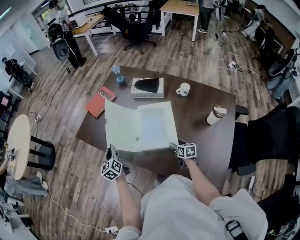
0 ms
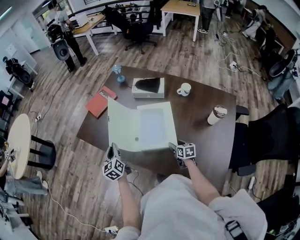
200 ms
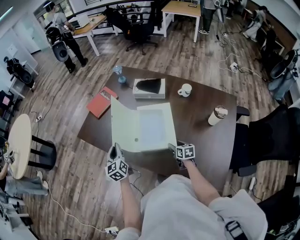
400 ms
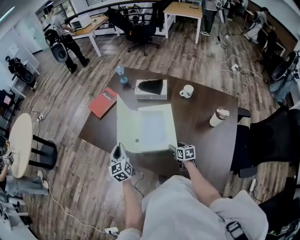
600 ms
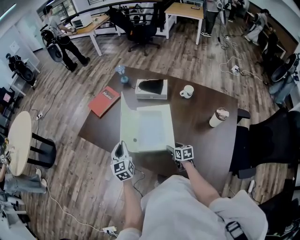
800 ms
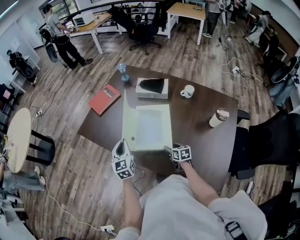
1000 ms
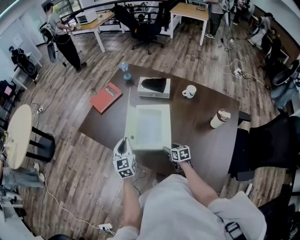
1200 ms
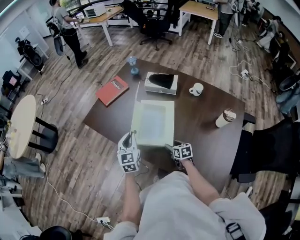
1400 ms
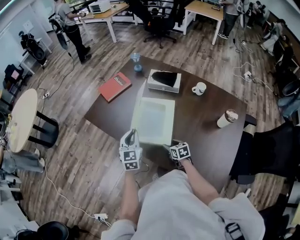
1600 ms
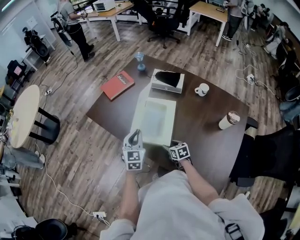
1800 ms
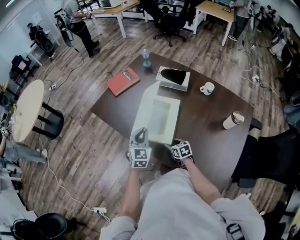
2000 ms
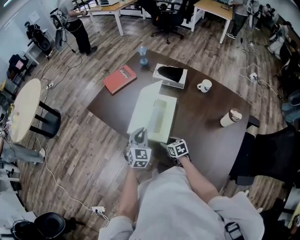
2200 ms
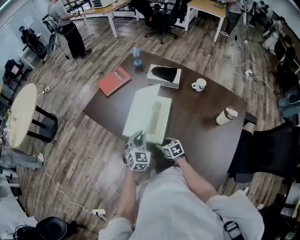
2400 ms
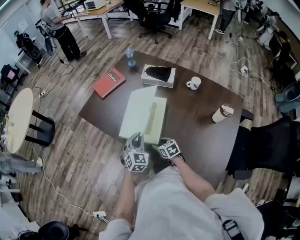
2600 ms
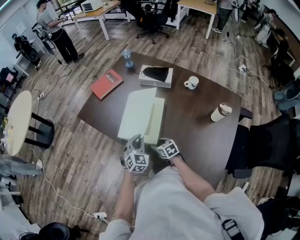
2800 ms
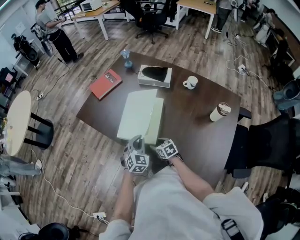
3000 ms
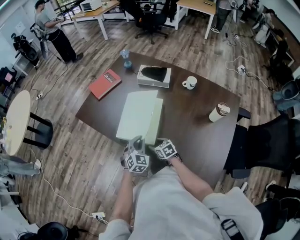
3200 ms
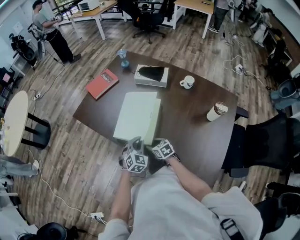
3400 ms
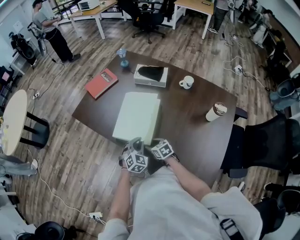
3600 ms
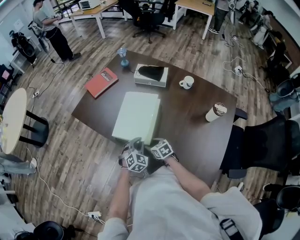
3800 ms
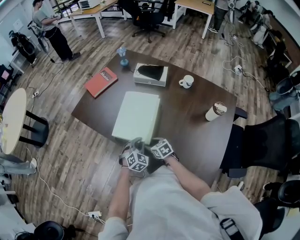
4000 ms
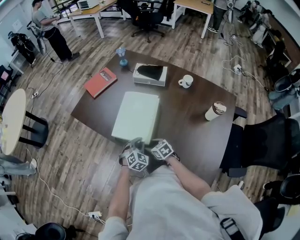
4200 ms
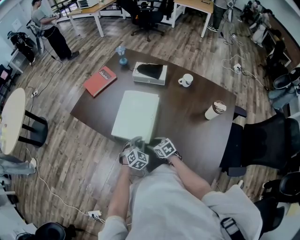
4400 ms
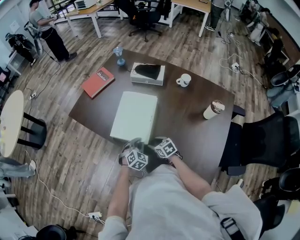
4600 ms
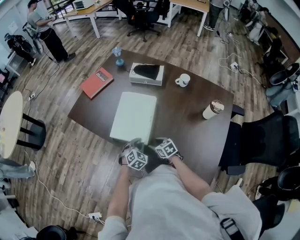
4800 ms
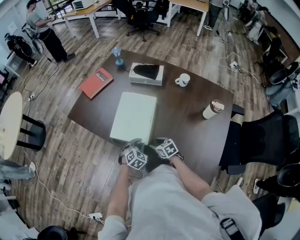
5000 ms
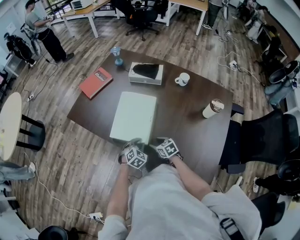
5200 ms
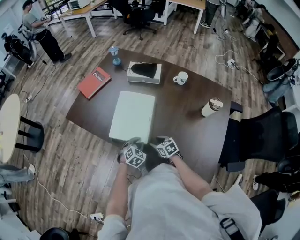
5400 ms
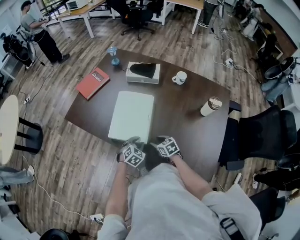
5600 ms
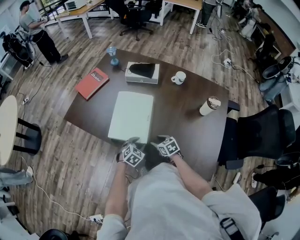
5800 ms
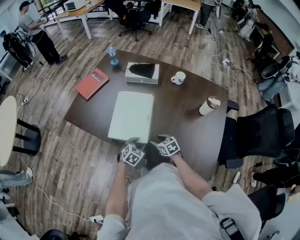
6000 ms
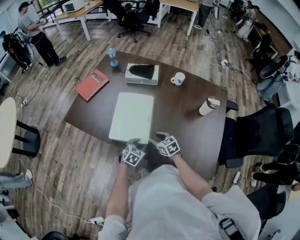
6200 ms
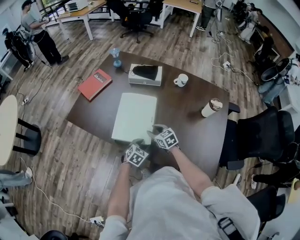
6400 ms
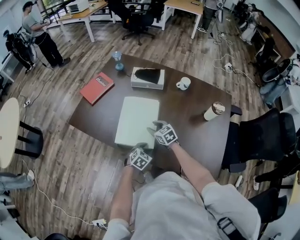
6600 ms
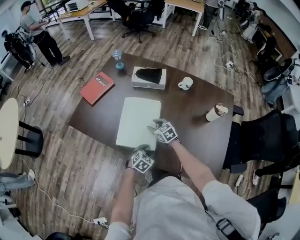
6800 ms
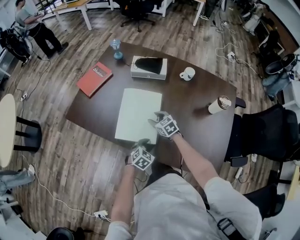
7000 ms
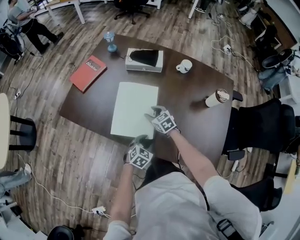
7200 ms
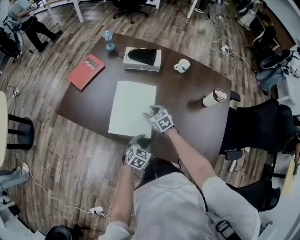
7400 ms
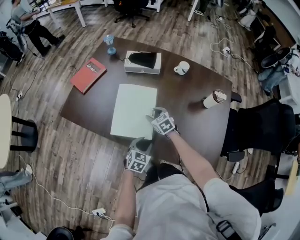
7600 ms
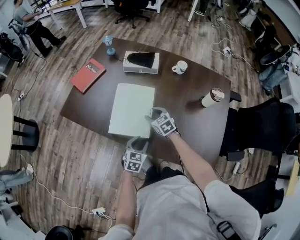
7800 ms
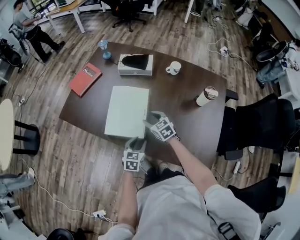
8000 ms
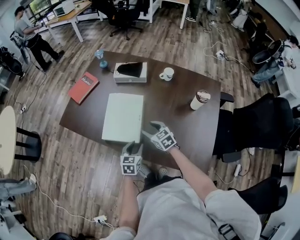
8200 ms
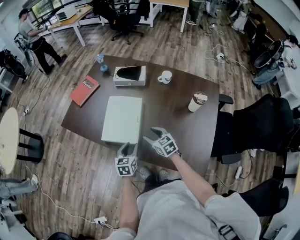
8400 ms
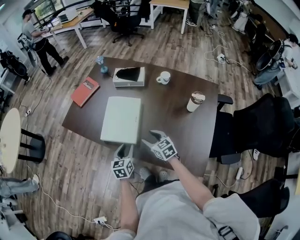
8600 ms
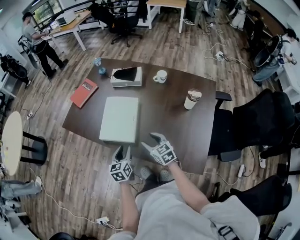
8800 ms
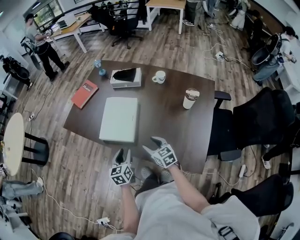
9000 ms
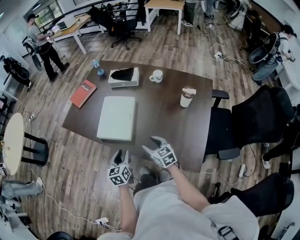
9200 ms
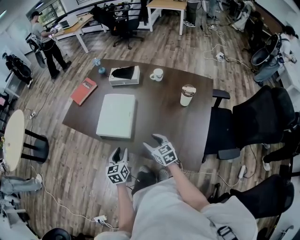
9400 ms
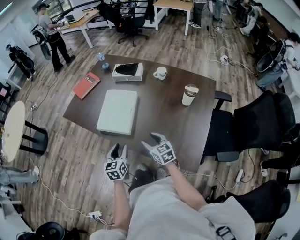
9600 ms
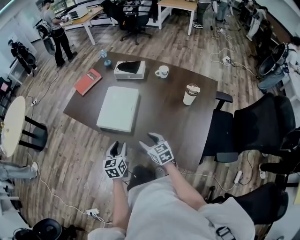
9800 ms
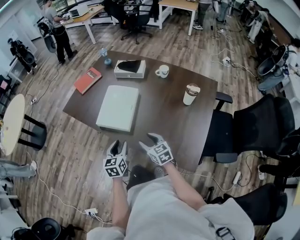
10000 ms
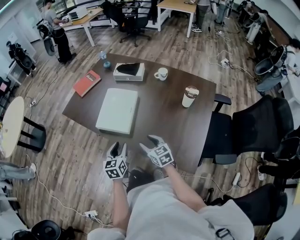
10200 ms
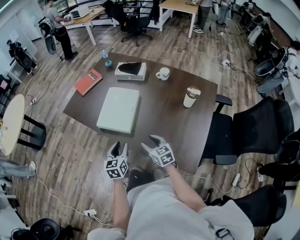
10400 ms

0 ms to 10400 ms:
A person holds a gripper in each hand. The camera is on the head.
0 ms to 1400 ms: The left gripper heads to the right, covering approximately 10 cm, and rotates some 30 degrees; the right gripper moves to the left, approximately 10 cm.
1400 ms to 3000 ms: The right gripper heads to the left, covering roughly 5 cm; the left gripper goes approximately 15 cm downward, backward and to the right, and turns by approximately 30 degrees.
3000 ms to 4400 ms: The left gripper heads downward, covering about 5 cm.
4400 ms to 6000 ms: The left gripper swivels roughly 20 degrees, and opens.
6000 ms to 7400 ms: The right gripper is displaced forward by some 15 cm.
7400 ms to 9000 ms: The left gripper shifts about 15 cm upward and backward, and turns by some 50 degrees; the right gripper heads backward, upward and to the right, covering roughly 25 cm.
9000 ms to 10400 ms: The grippers stay close to where they were, moving slightly.

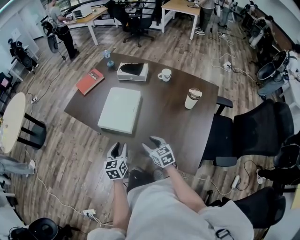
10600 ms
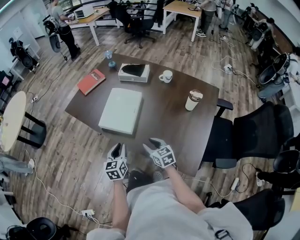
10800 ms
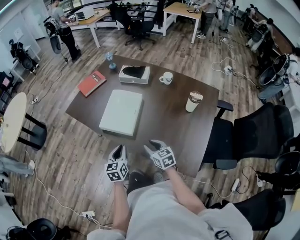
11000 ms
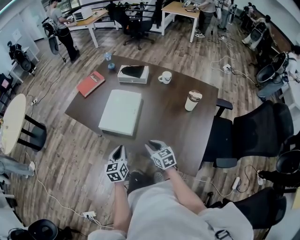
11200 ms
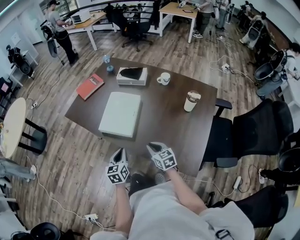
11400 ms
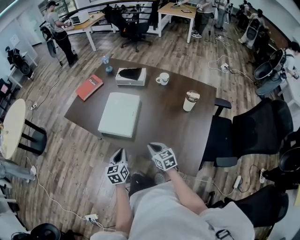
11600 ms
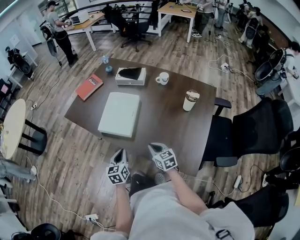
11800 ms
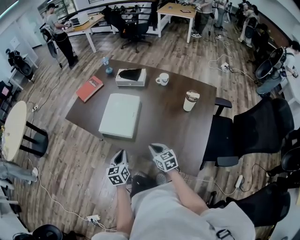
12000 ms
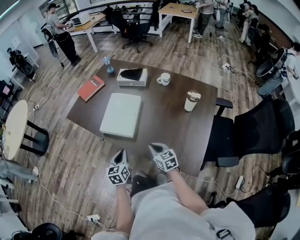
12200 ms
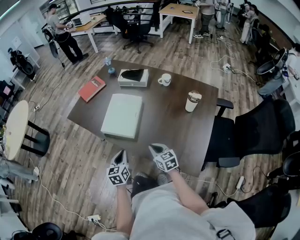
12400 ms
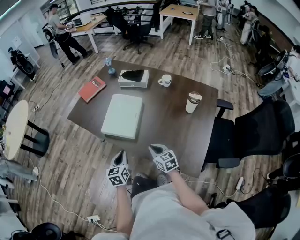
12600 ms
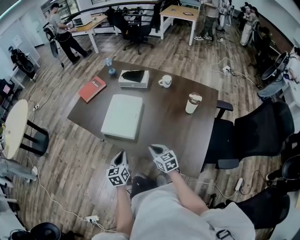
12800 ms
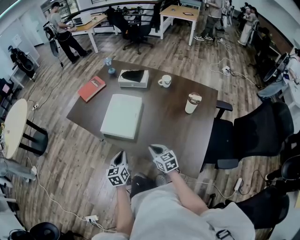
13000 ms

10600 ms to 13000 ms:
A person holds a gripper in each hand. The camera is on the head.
10600 ms to 11800 ms: The right gripper closes its fingers, while the left gripper closes its fingers.
11800 ms to 13000 ms: The grippers make only small movements.

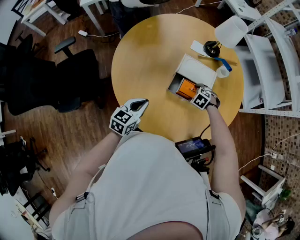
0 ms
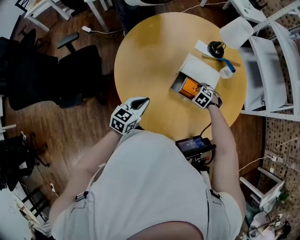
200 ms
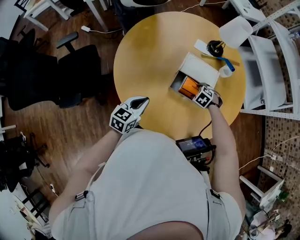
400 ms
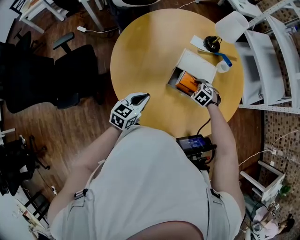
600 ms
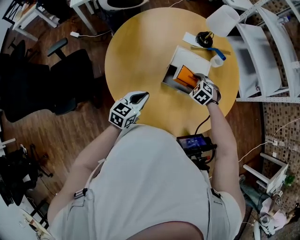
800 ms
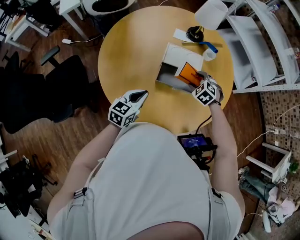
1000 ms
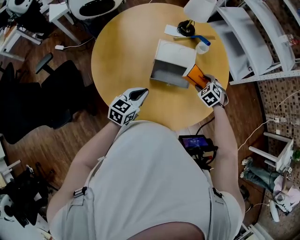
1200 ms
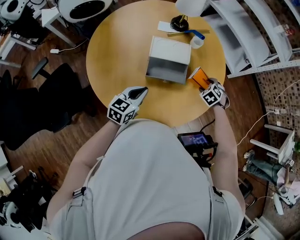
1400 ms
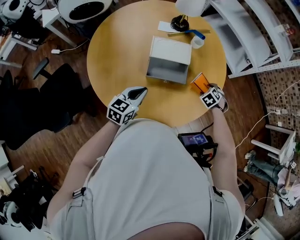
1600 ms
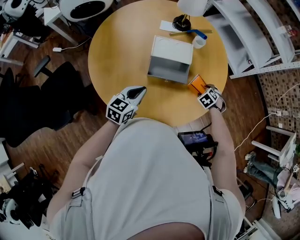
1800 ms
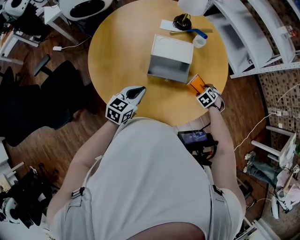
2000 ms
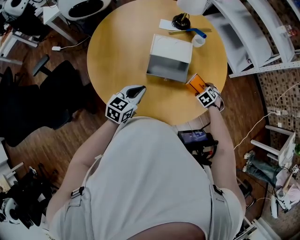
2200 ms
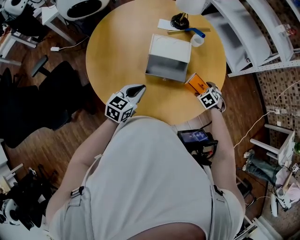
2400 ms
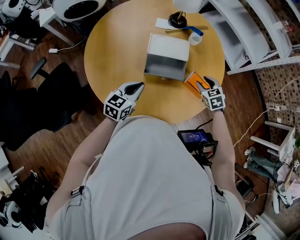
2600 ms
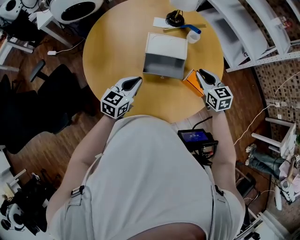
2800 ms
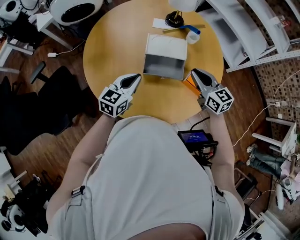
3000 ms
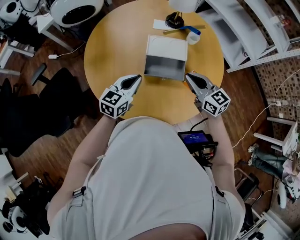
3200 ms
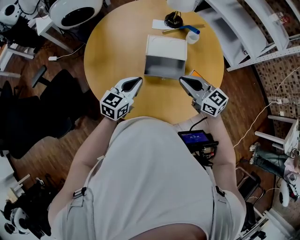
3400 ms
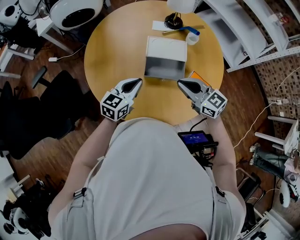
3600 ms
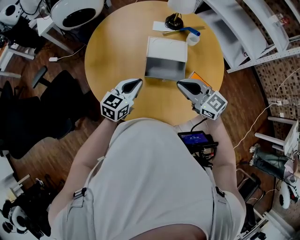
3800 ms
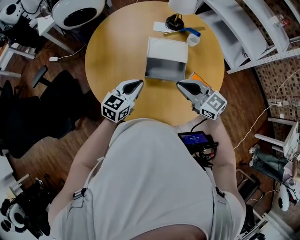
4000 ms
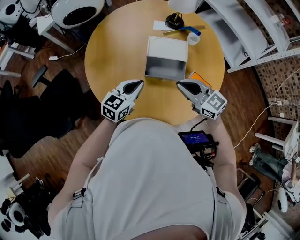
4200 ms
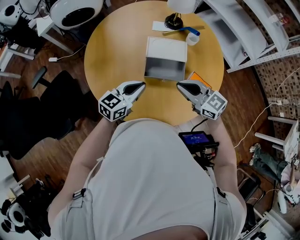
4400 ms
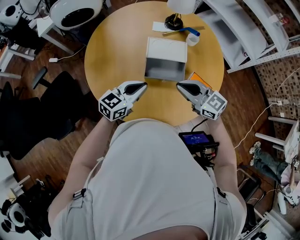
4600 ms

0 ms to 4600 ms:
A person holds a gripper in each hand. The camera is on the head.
0 ms to 1600 ms: The left gripper changes place by roughly 10 cm. Meanwhile the right gripper reaches roughly 10 cm upward, then returns, and turns by about 40 degrees.
1600 ms to 3000 ms: The left gripper ends up about 5 cm from where it was, while the right gripper goes roughly 20 cm upward, points its fingers approximately 60 degrees further upward, and closes.
3000 ms to 4600 ms: The right gripper heads to the left and backward, covering roughly 10 cm, and swivels roughly 20 degrees.

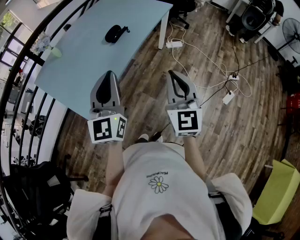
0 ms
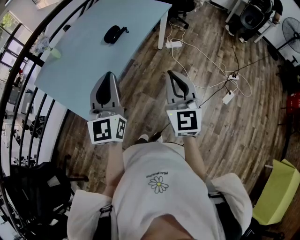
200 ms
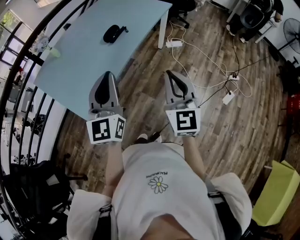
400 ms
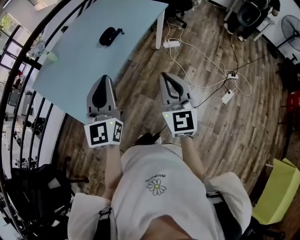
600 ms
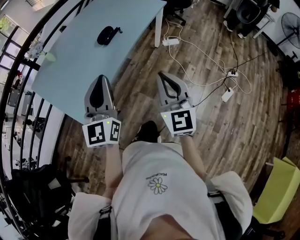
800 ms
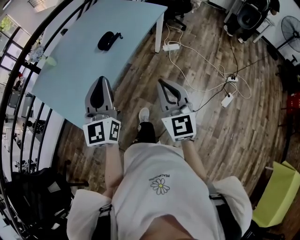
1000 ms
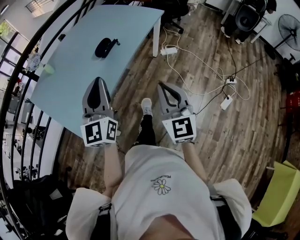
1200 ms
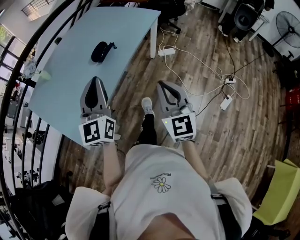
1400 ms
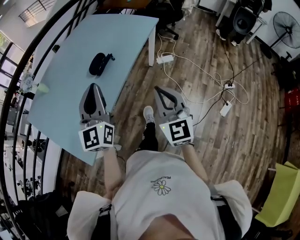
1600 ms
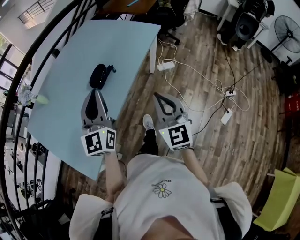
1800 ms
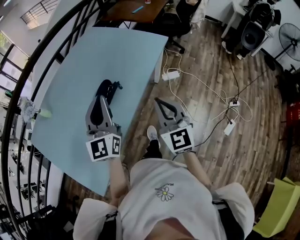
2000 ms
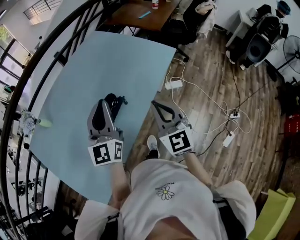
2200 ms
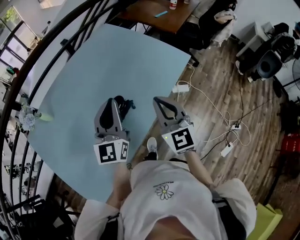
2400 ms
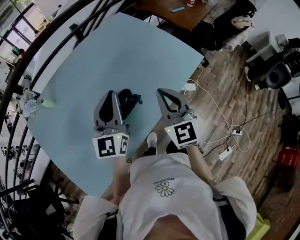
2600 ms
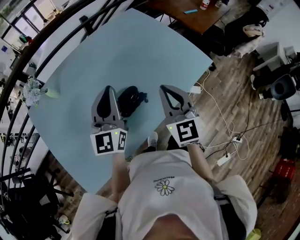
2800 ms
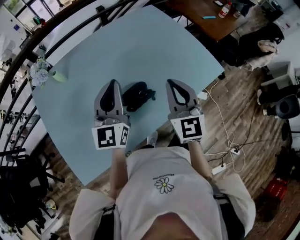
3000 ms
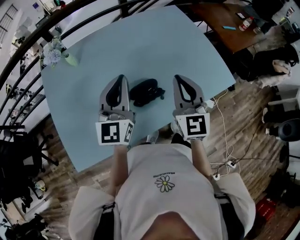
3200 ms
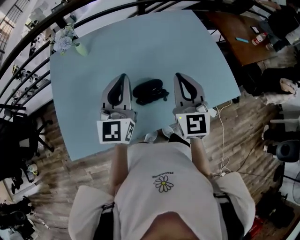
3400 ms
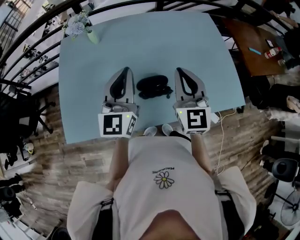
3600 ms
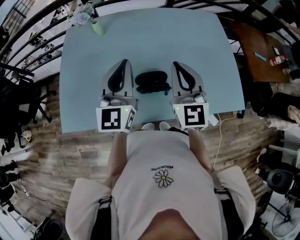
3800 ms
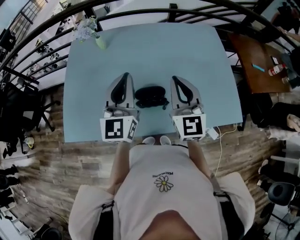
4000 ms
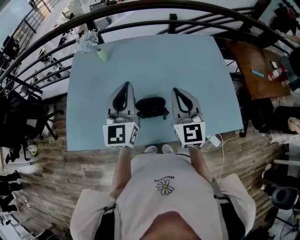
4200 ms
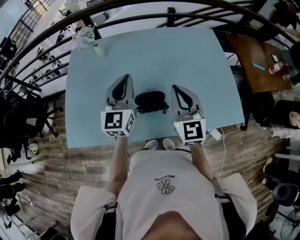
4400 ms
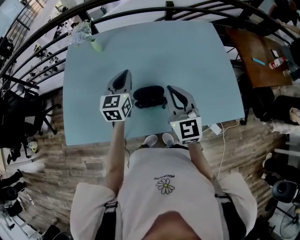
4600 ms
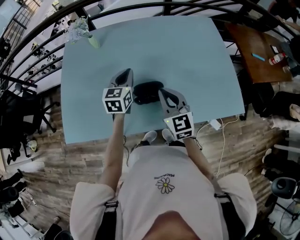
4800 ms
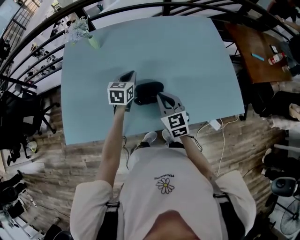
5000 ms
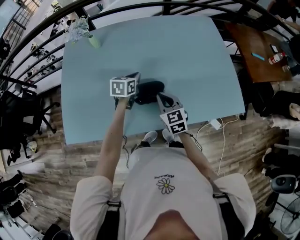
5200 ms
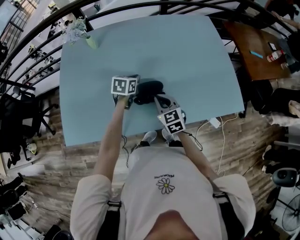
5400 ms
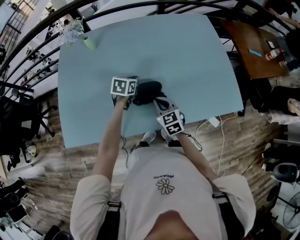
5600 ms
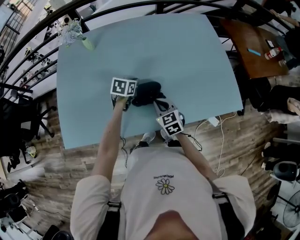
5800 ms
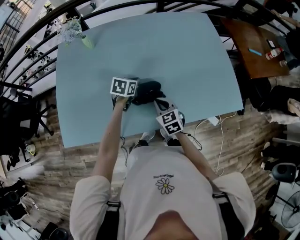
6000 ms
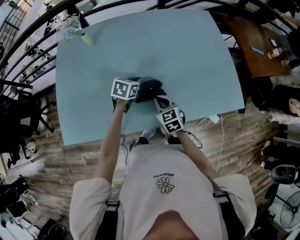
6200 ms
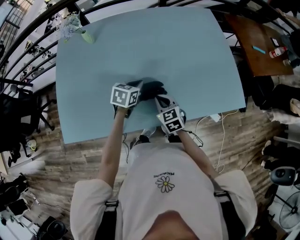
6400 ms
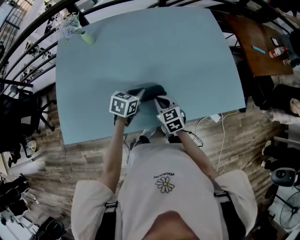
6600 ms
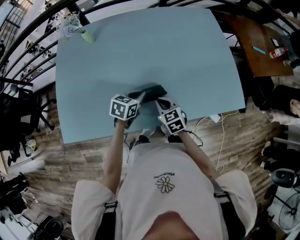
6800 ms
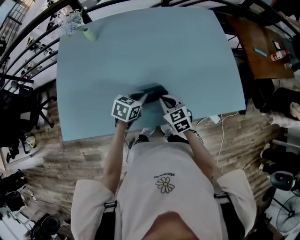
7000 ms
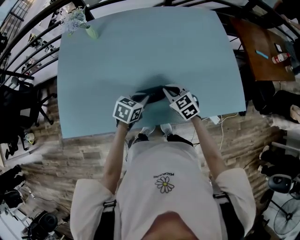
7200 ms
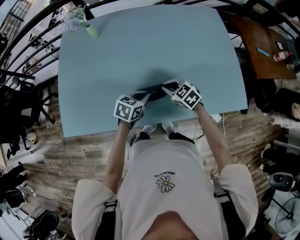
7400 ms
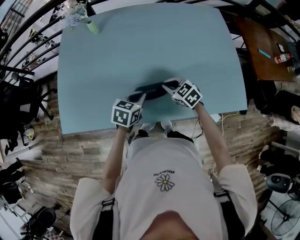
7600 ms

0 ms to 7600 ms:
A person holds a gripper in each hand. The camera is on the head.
0 ms to 1600 ms: The grippers both shift forward by roughly 20 cm.
1600 ms to 3000 ms: The grippers both shift forward by about 40 cm. The right gripper rotates about 30 degrees. Meanwhile the left gripper turns by approximately 20 degrees.
3000 ms to 4600 ms: The left gripper moves downward, approximately 10 cm, and turns by some 30 degrees. Meanwhile the right gripper ends up roughly 5 cm from where it was, and changes its angle by roughly 30 degrees.
4600 ms to 6000 ms: Both grippers move downward, approximately 20 cm. The right gripper angles its fingers downward, by about 30 degrees, while the left gripper tips its fingers downward by about 40 degrees.
6000 ms to 7600 ms: The left gripper is displaced backward by some 15 cm; the right gripper changes its angle by roughly 30 degrees.
